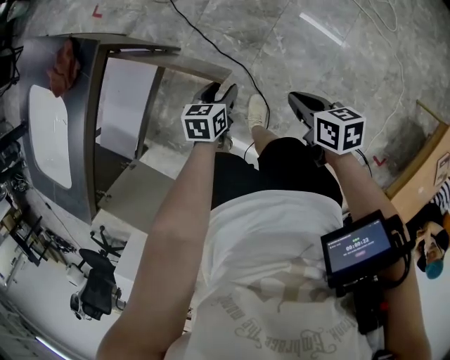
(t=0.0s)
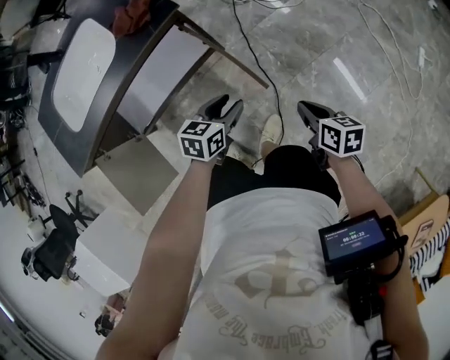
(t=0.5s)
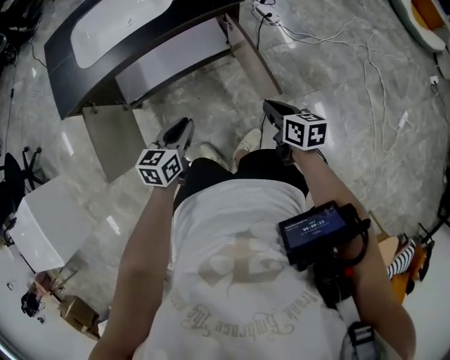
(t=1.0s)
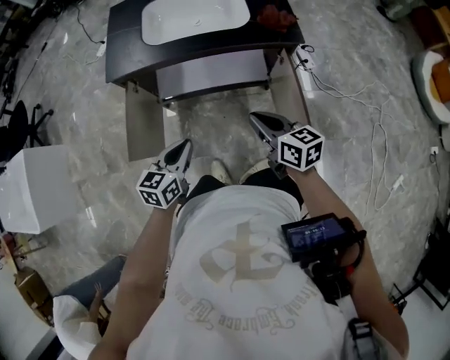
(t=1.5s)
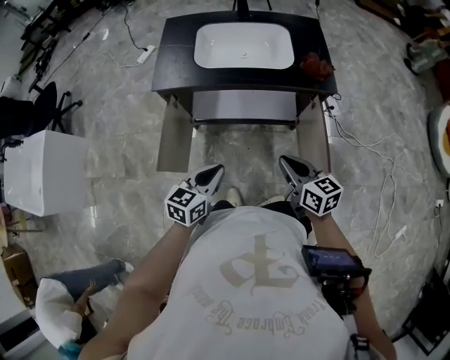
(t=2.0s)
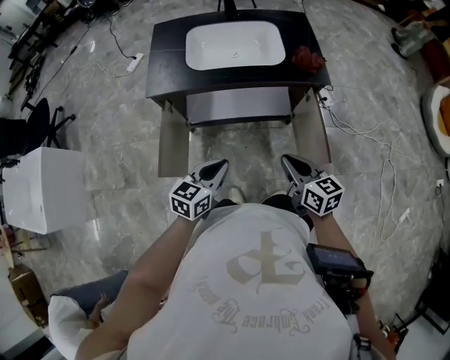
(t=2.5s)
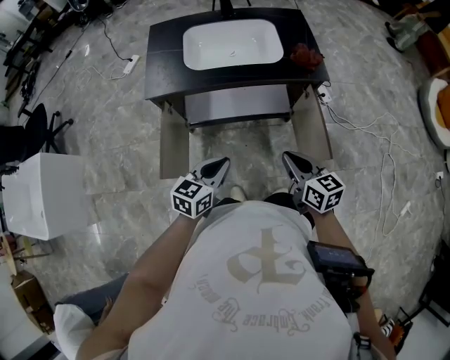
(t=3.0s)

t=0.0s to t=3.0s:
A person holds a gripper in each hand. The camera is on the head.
t=0.0s to t=1.5s: The left gripper changes place by some 50 cm, turns by approximately 60 degrees, and closes up; the right gripper shifts by about 40 cm, and swivels approximately 60 degrees.
t=1.5s to t=3.0s: The grippers move only a little.

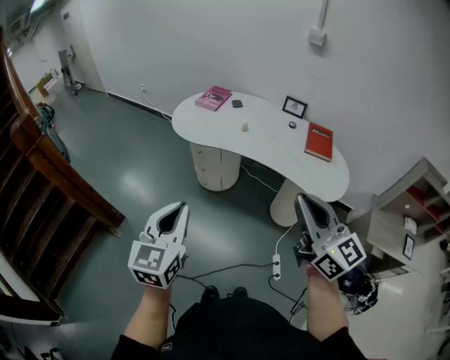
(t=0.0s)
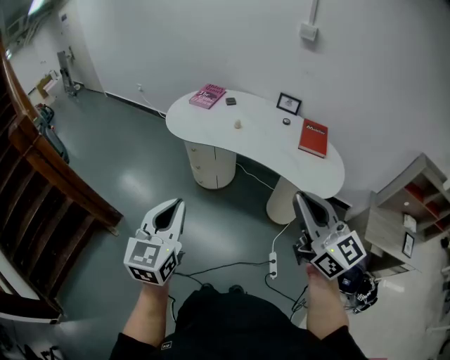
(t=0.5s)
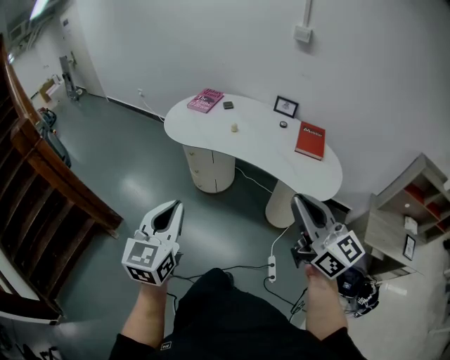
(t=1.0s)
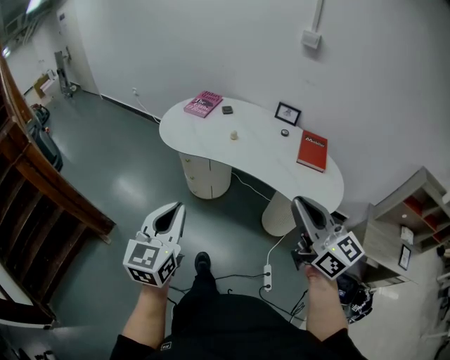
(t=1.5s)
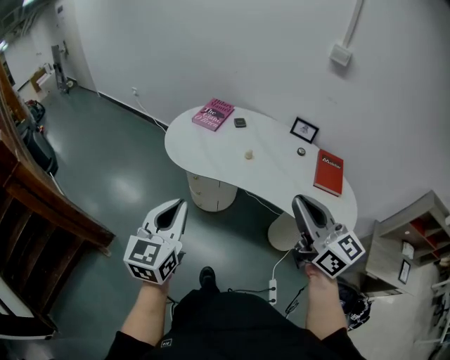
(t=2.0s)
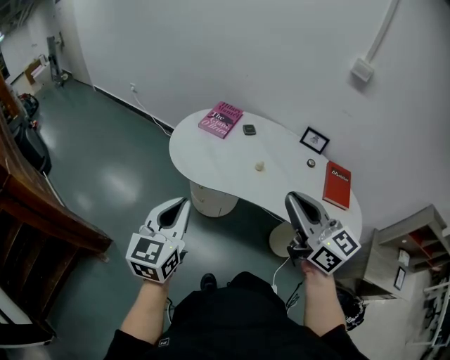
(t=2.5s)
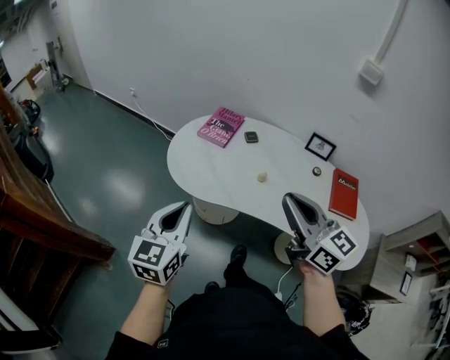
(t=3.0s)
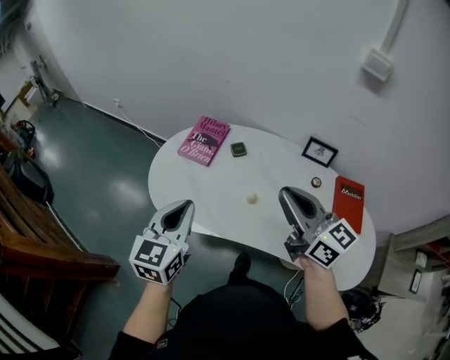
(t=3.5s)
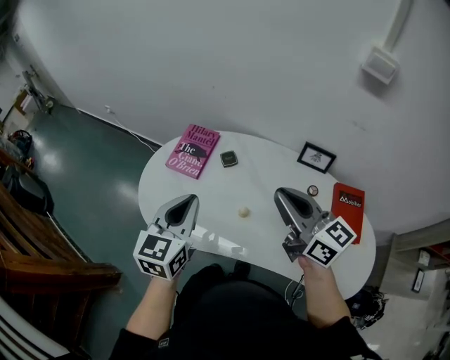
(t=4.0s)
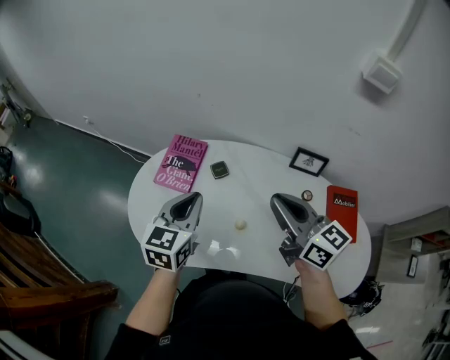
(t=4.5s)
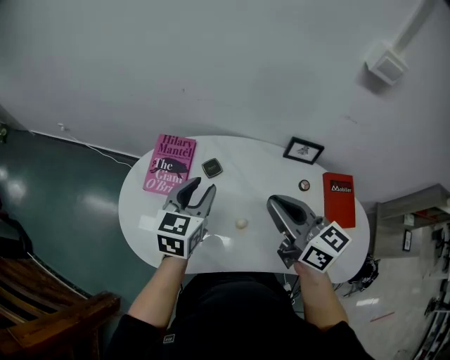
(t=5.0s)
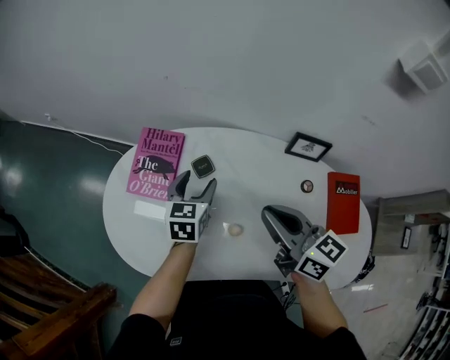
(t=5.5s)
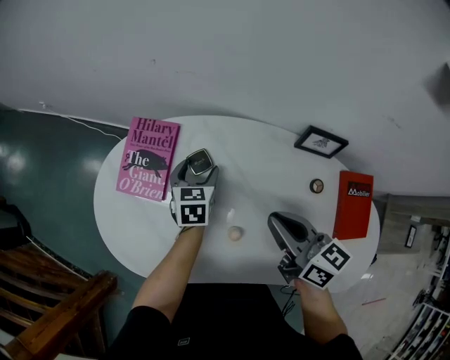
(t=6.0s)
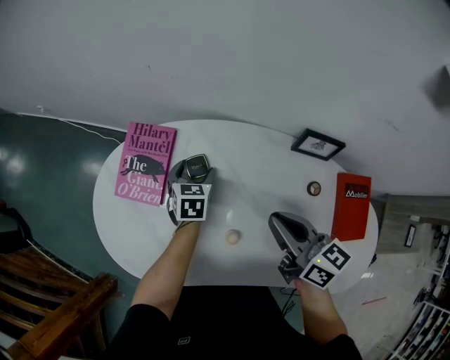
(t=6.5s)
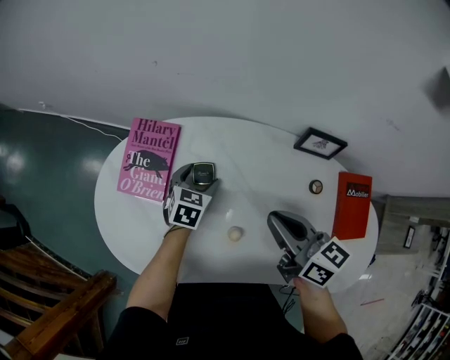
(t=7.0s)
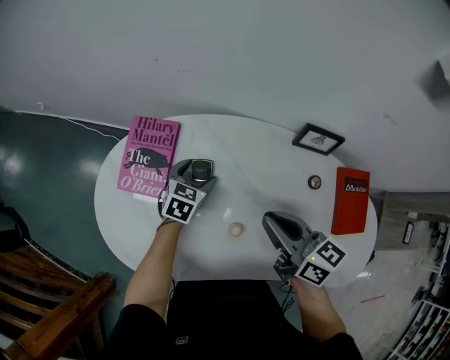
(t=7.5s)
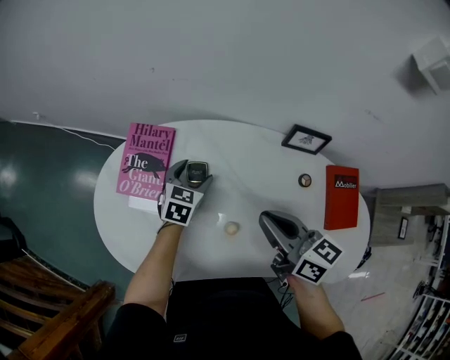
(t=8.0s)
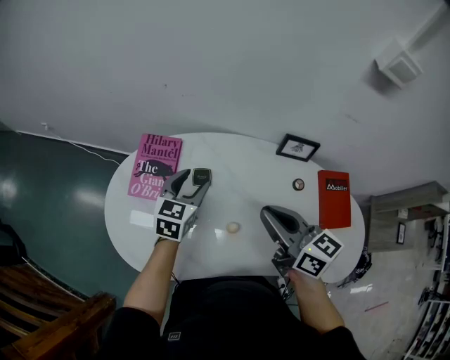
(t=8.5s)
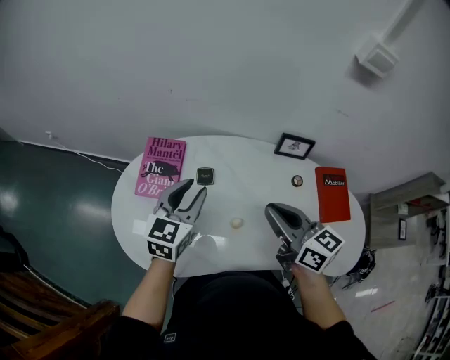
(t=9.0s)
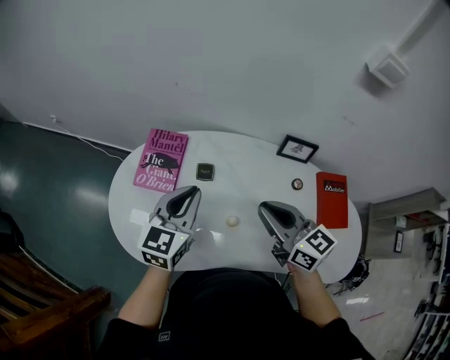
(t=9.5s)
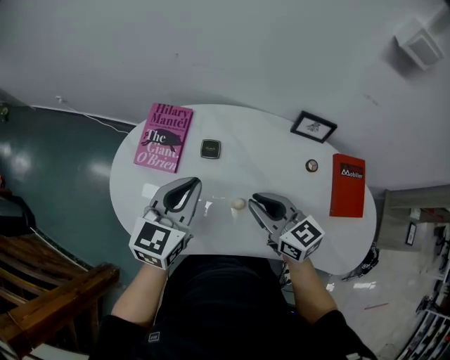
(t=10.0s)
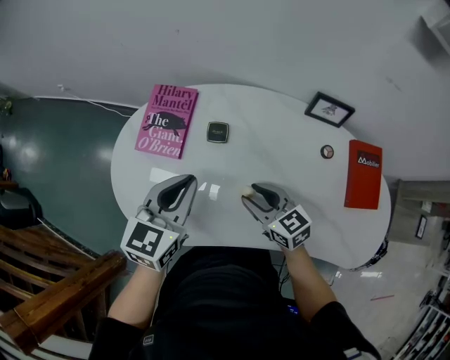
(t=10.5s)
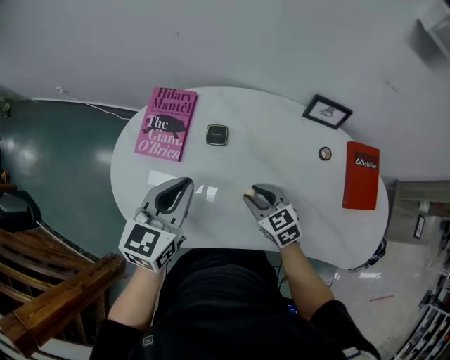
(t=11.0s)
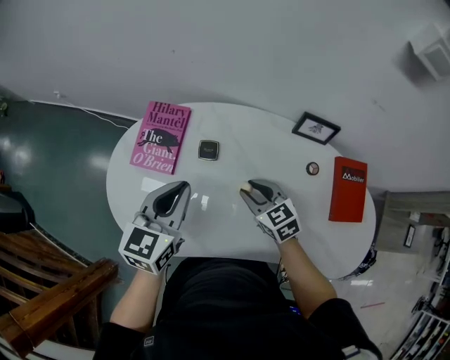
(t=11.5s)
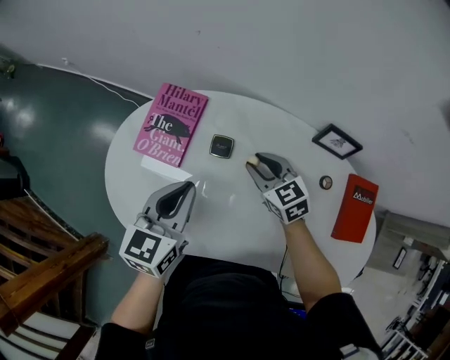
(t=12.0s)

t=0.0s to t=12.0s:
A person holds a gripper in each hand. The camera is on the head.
t=0.0s to t=2.0s: The grippers both shift forward by about 25 cm.
t=2.0s to t=4.0s: Both grippers move forward, about 40 cm.
t=4.0s to t=6.0s: The right gripper travels downward and forward by about 20 cm, and turns by some 30 degrees; the left gripper moves downward and forward, about 40 cm, changes its angle by some 30 degrees, and opens up.
t=6.0s to t=8.0s: The left gripper rotates roughly 20 degrees.
t=8.0s to t=10.0s: The left gripper travels upward and backward by some 25 cm, turns by about 20 degrees, and closes up. Meanwhile the right gripper shifts by some 5 cm, and rotates some 20 degrees.
t=10.0s to t=12.0s: The left gripper shifts by some 5 cm, while the right gripper heads forward and downward, covering about 20 cm, rotates about 20 degrees, and opens its fingers.

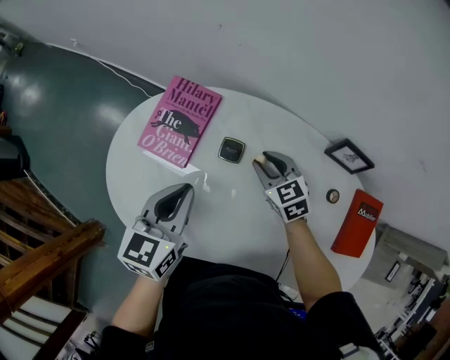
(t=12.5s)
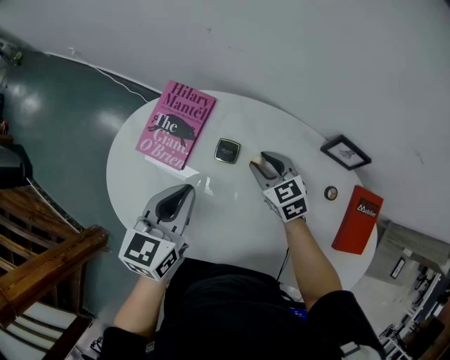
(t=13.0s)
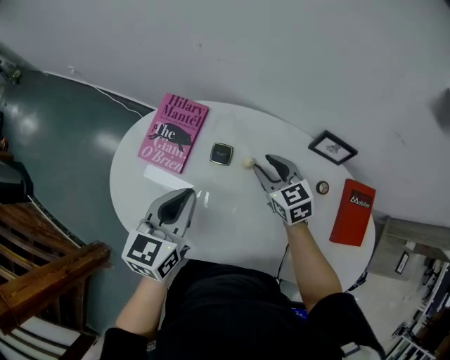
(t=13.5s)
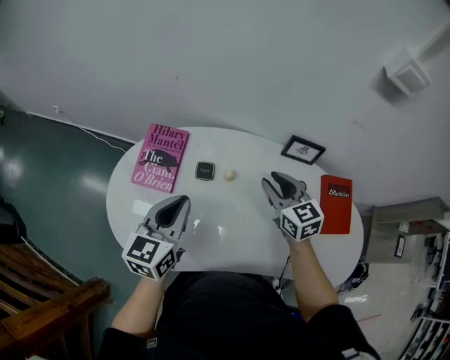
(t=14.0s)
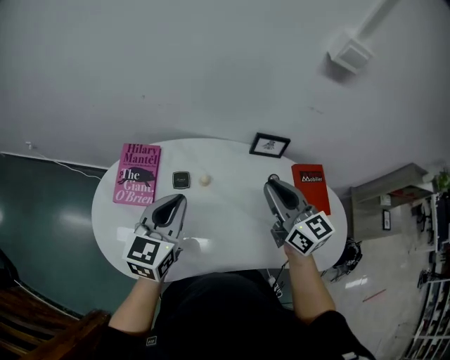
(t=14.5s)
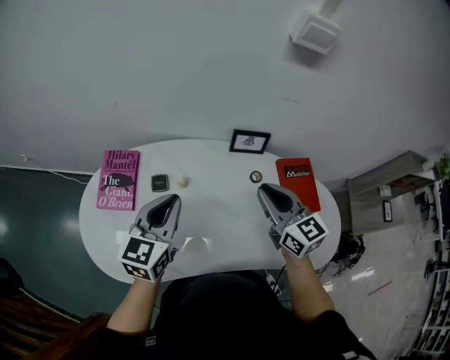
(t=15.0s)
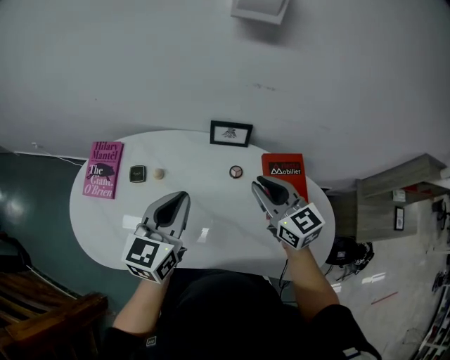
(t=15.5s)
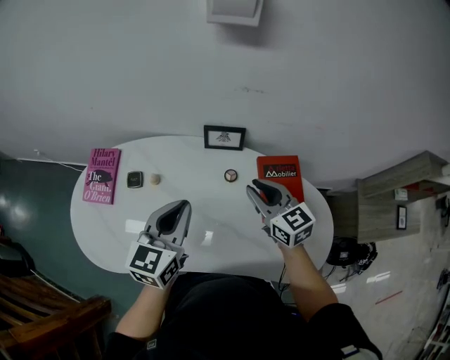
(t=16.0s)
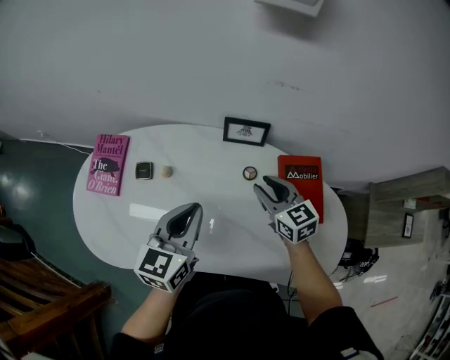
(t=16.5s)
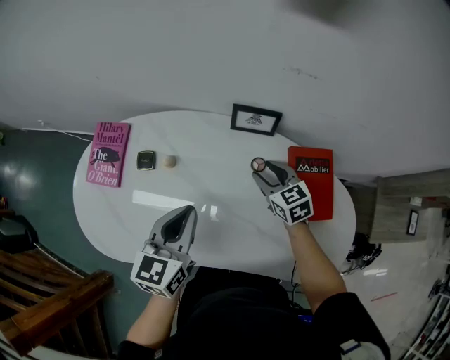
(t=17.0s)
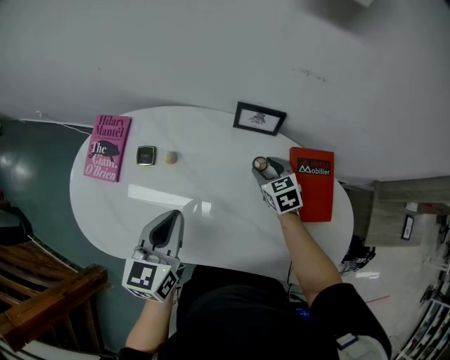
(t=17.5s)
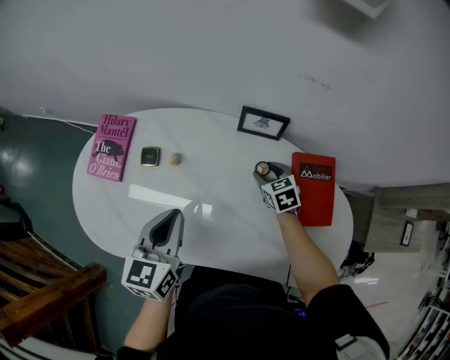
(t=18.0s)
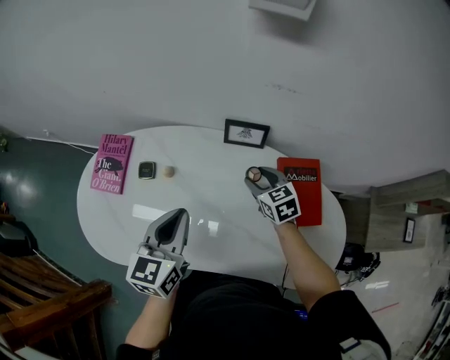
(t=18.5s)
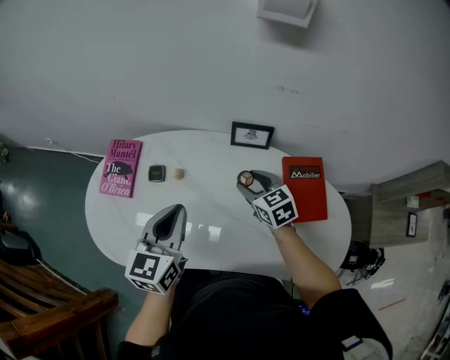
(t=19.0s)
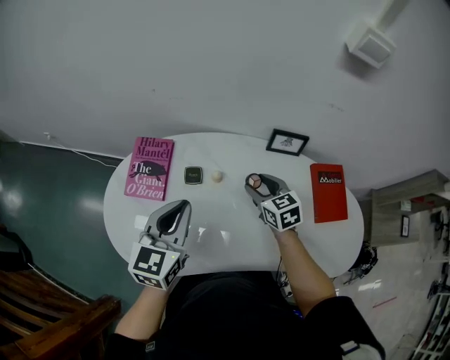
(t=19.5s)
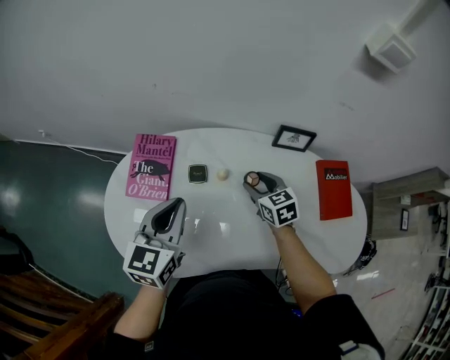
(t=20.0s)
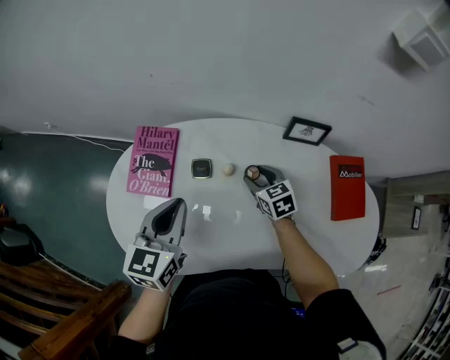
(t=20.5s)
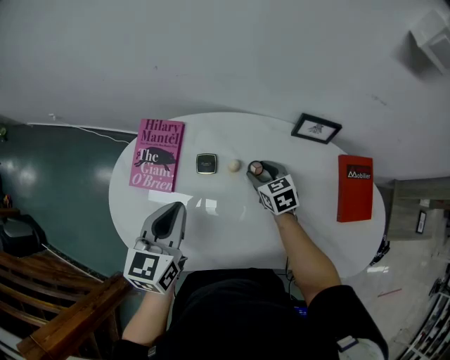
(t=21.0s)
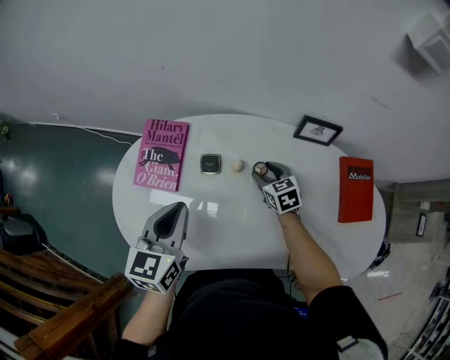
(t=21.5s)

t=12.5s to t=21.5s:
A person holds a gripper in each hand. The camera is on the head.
t=12.5s to t=14.5s: The left gripper heads upward and to the right, covering approximately 10 cm, and turns by roughly 30 degrees; the right gripper heads upward, backward and to the right, covering approximately 30 cm, and points its fingers approximately 30 degrees further upward.
t=14.5s to t=17.0s: The right gripper travels downward and to the right by approximately 30 cm, turns by some 30 degrees, and opens; the left gripper goes about 20 cm to the right.
t=17.0s to t=19.5s: The left gripper swings left and right, some 20 cm each way, with 2 reversals; the right gripper shifts roughly 20 cm to the left.
t=19.5s to t=21.5s: The left gripper moves downward, about 5 cm, while the right gripper is displaced downward by about 15 cm.

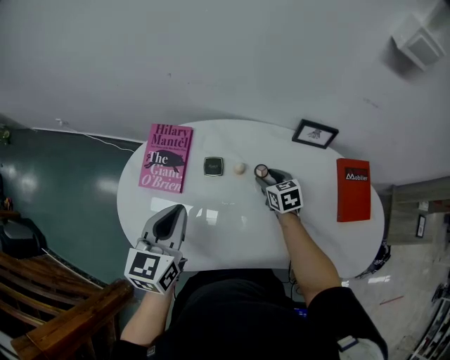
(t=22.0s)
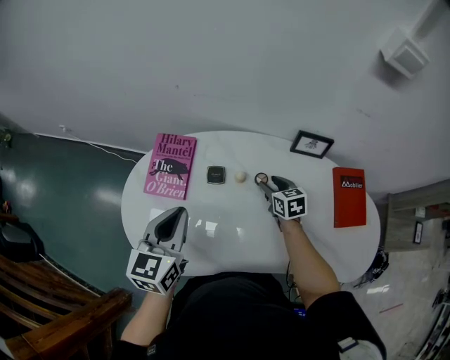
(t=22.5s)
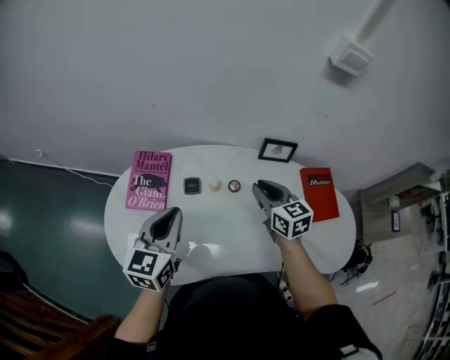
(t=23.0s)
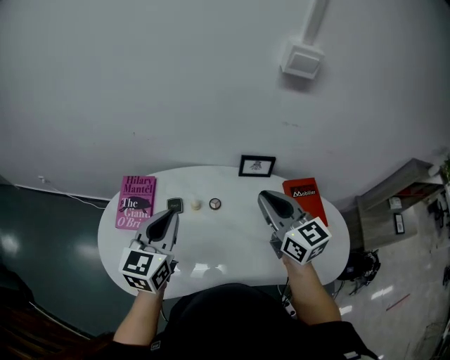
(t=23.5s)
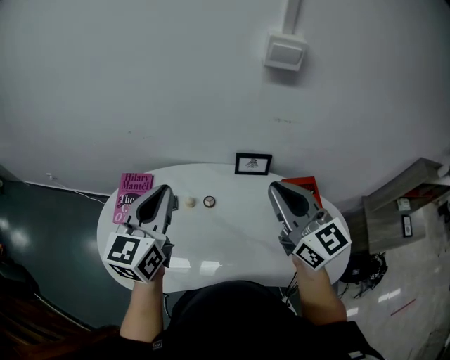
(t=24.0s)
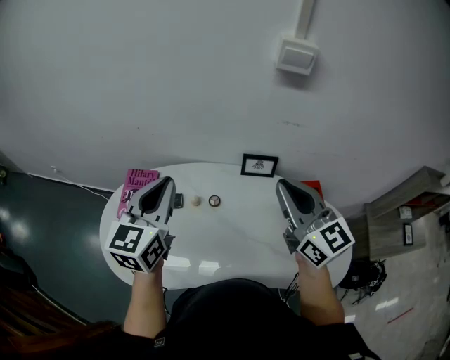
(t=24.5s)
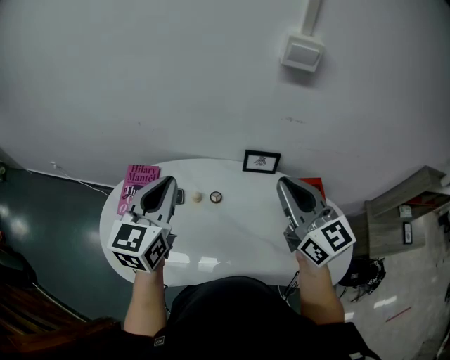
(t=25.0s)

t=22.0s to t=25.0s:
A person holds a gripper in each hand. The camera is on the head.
t=22.0s to t=23.5s: The right gripper is displaced upward by some 35 cm, tilts its fingers about 40 degrees upward, and closes its fingers; the left gripper travels to the right and upward by about 15 cm.
t=23.5s to t=25.0s: The two grippers go some 5 cm upward.
